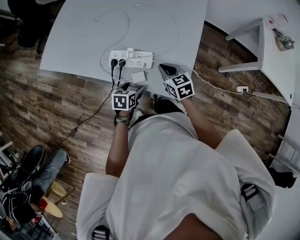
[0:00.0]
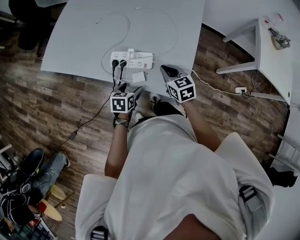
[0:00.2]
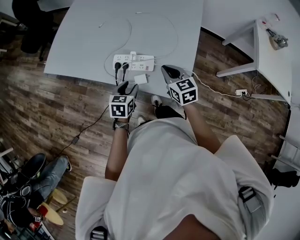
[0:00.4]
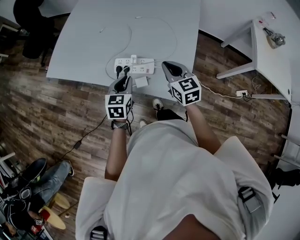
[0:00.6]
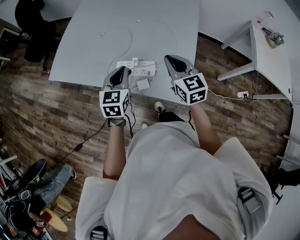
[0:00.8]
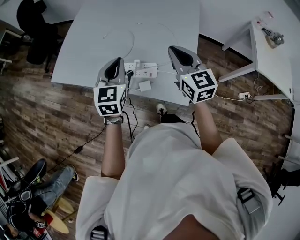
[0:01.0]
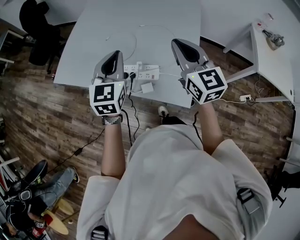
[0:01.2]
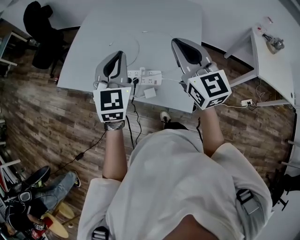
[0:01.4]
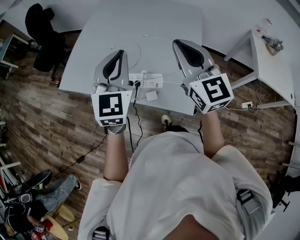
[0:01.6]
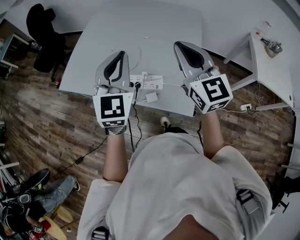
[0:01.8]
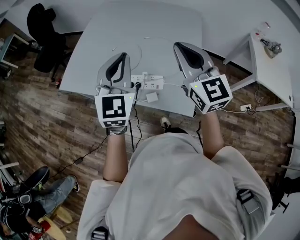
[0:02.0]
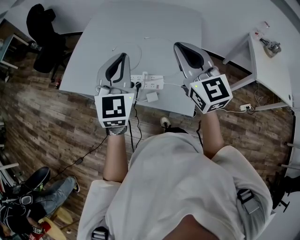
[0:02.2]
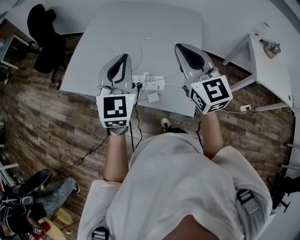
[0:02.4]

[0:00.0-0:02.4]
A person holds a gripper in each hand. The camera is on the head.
0.0 to 1.2 s: The two grippers go some 35 cm upward. The left gripper angles its fingers upward, by approximately 40 degrees, and closes. The right gripper tilts its fingers roughly 30 degrees upward.
1.2 to 2.4 s: The two grippers go about 5 cm upward.

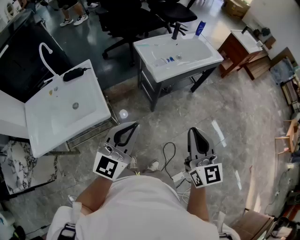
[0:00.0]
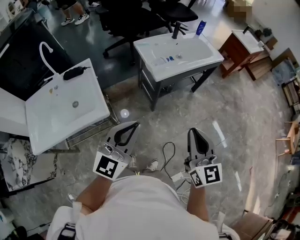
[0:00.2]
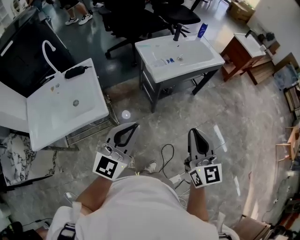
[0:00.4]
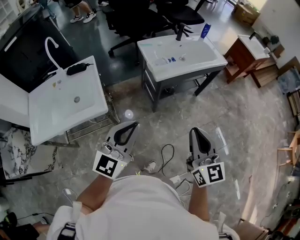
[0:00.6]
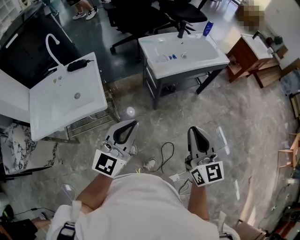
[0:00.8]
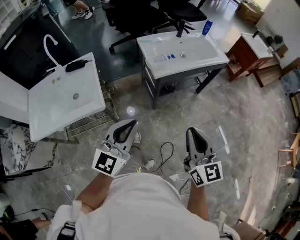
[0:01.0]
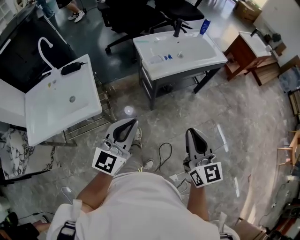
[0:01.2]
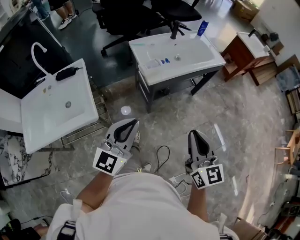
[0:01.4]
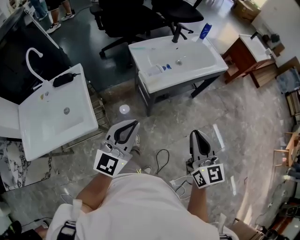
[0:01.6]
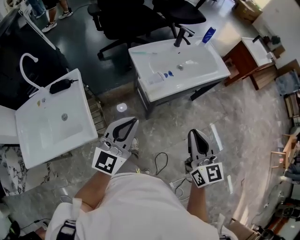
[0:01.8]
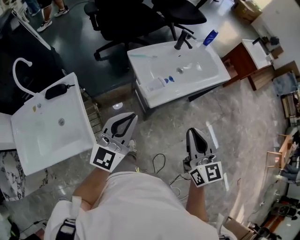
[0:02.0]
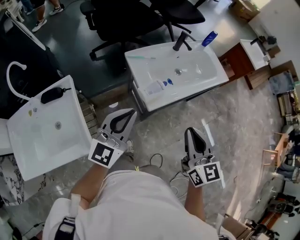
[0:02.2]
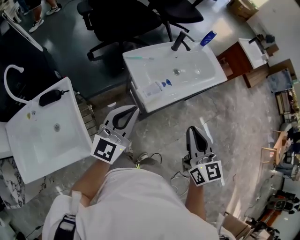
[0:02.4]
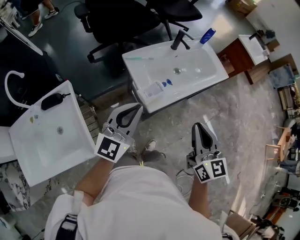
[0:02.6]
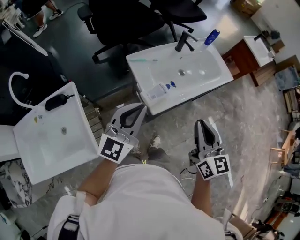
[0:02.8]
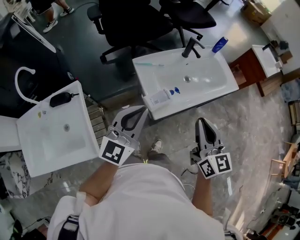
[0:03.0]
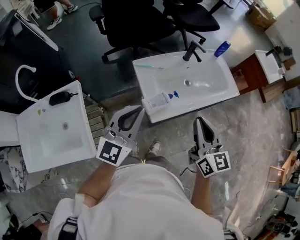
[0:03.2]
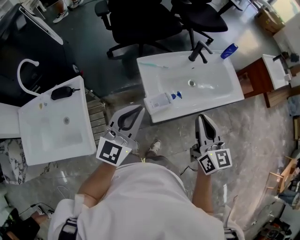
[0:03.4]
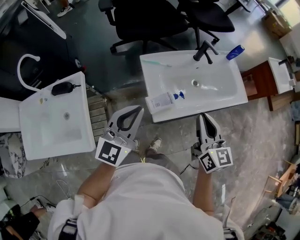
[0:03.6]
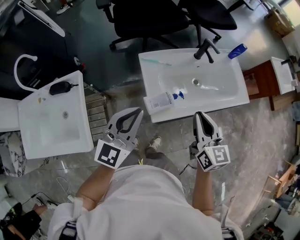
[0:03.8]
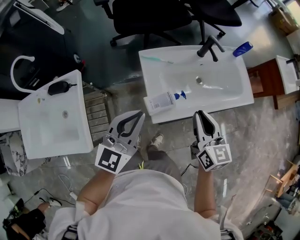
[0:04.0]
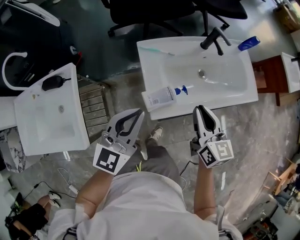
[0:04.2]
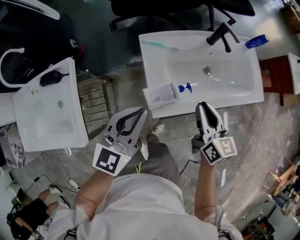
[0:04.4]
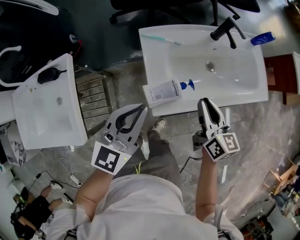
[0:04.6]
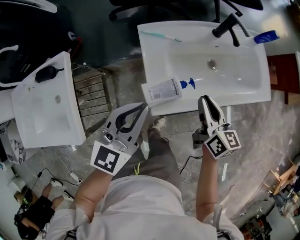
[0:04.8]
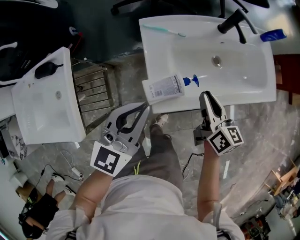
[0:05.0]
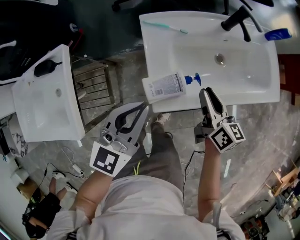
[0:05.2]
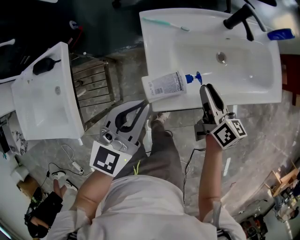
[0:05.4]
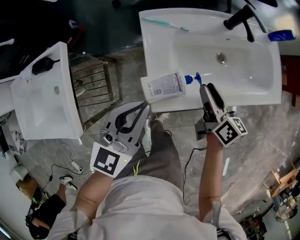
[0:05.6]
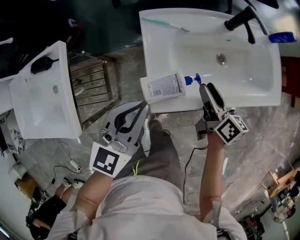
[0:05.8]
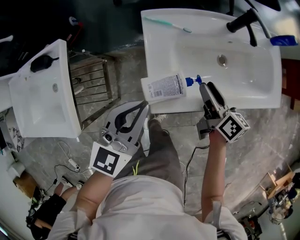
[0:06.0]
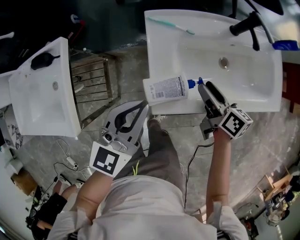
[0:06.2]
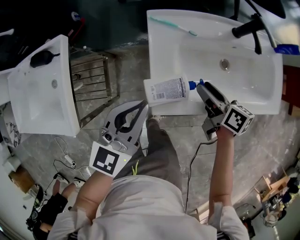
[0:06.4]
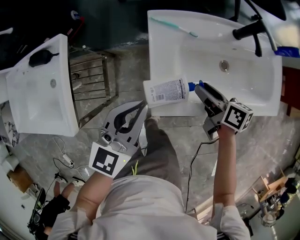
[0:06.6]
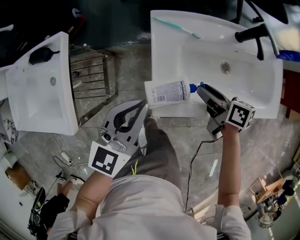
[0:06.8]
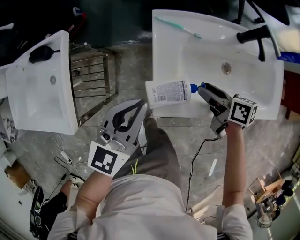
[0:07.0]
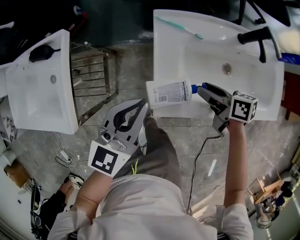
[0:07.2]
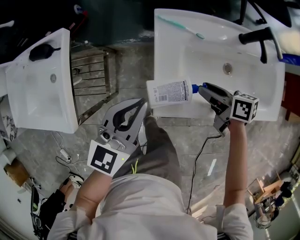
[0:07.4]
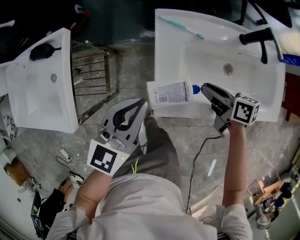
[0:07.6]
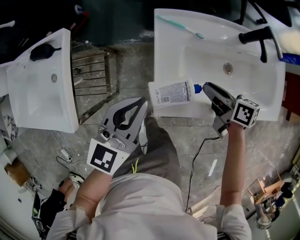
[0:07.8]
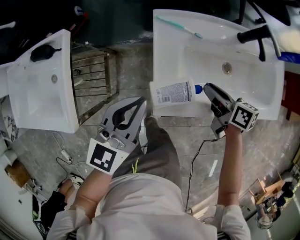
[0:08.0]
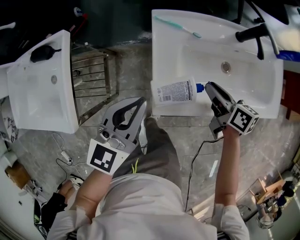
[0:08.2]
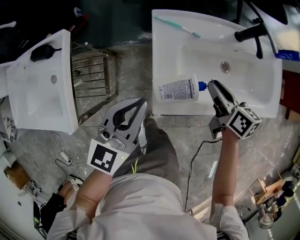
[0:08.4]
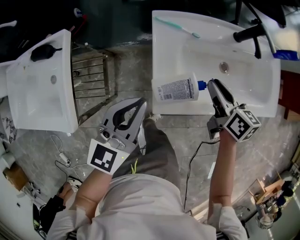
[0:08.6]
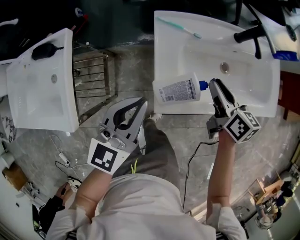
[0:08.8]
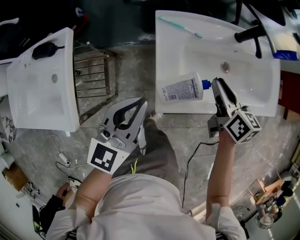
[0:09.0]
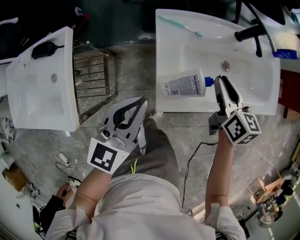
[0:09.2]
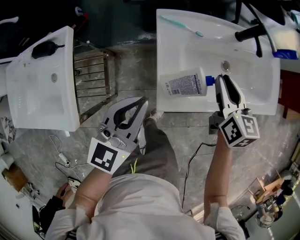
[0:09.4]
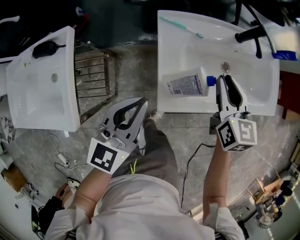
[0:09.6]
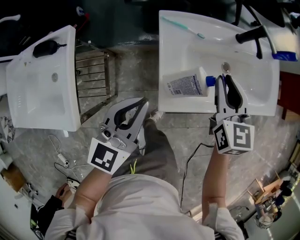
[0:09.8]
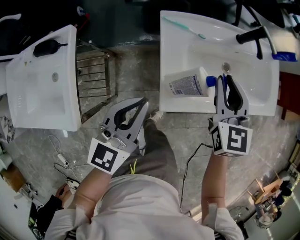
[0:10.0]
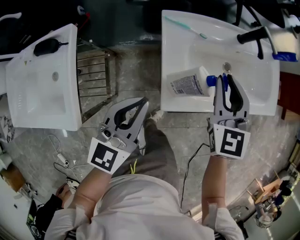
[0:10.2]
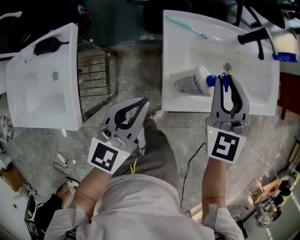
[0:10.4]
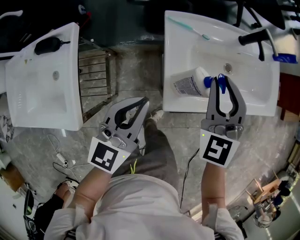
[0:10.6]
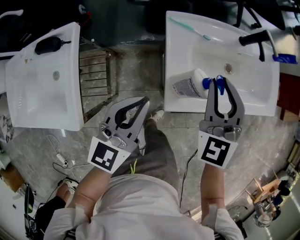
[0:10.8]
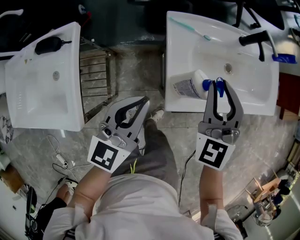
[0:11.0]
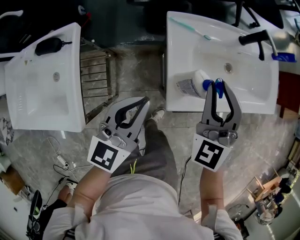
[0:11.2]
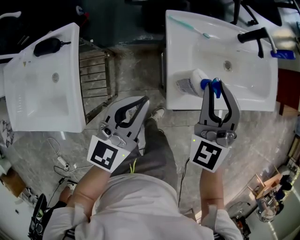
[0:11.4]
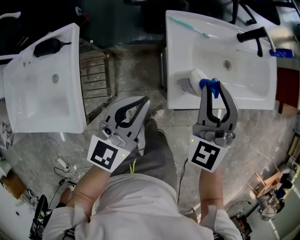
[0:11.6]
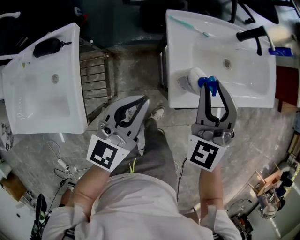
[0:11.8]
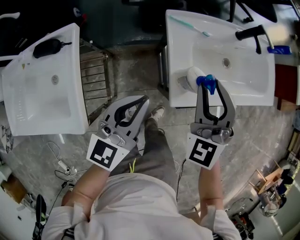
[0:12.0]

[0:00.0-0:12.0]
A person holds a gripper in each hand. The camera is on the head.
0.0 to 1.6 s: The two grippers go some 15 cm forward and to the right.
1.6 to 3.0 s: Both grippers travel together forward, about 25 cm.
3.0 to 4.4 s: The left gripper heads downward and forward, covering some 15 cm; the right gripper heads downward and forward, covering some 25 cm, and rotates some 20 degrees.
4.4 to 6.0 s: The left gripper is displaced downward by about 5 cm. Meanwhile the right gripper travels downward and forward by roughly 15 cm, turns by approximately 30 degrees, and opens.
6.0 to 7.6 s: The right gripper ends up roughly 5 cm from where it was, and rotates approximately 30 degrees.
7.6 to 9.0 s: The right gripper travels upward by approximately 10 cm, and swivels roughly 30 degrees.
9.0 to 10.4 s: The right gripper goes about 15 cm upward and to the left, and twists some 50 degrees counterclockwise, seen from behind.
10.4 to 12.0 s: The right gripper heads backward and to the left, covering approximately 10 cm.

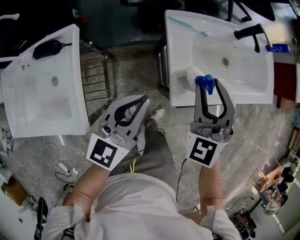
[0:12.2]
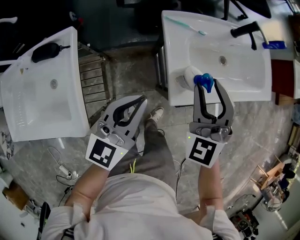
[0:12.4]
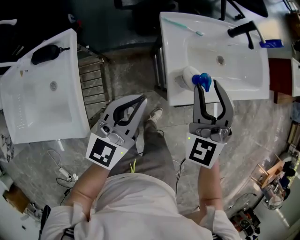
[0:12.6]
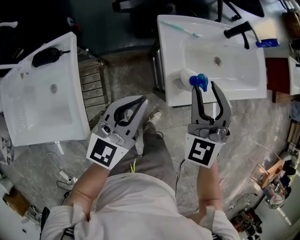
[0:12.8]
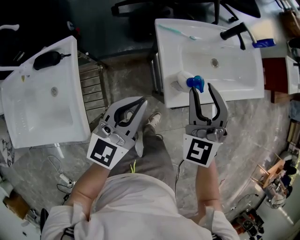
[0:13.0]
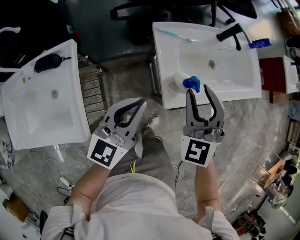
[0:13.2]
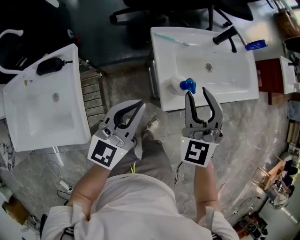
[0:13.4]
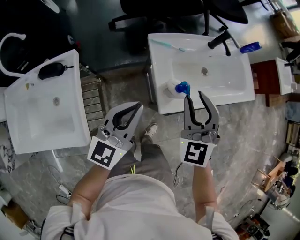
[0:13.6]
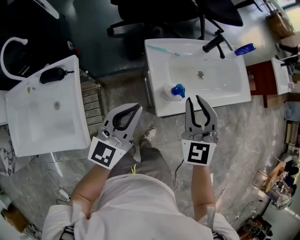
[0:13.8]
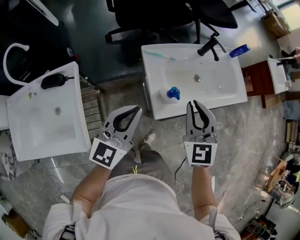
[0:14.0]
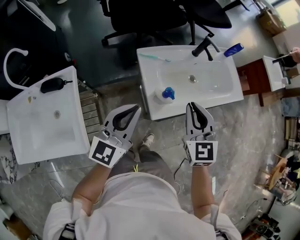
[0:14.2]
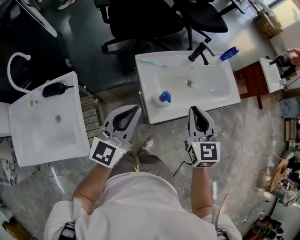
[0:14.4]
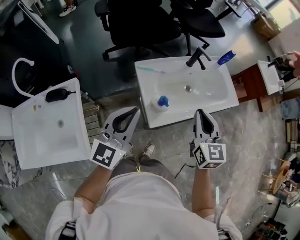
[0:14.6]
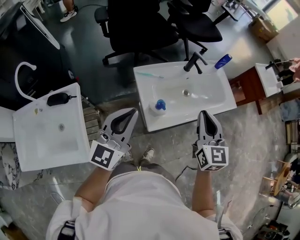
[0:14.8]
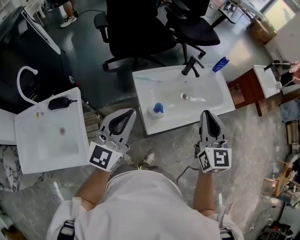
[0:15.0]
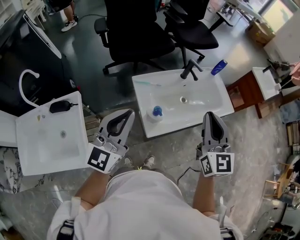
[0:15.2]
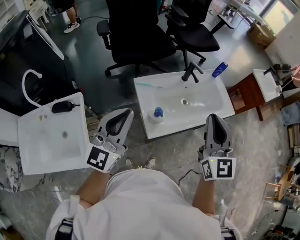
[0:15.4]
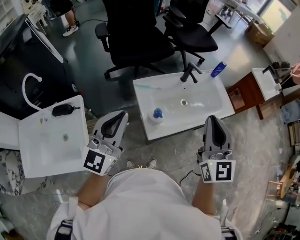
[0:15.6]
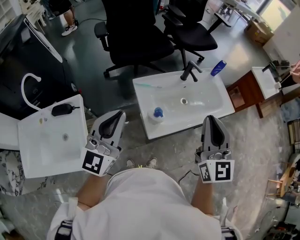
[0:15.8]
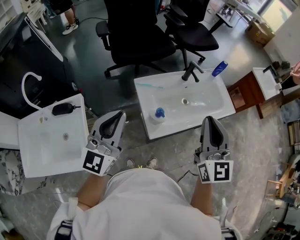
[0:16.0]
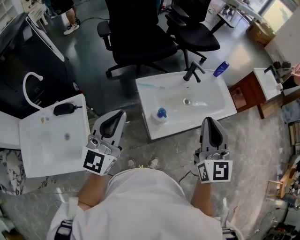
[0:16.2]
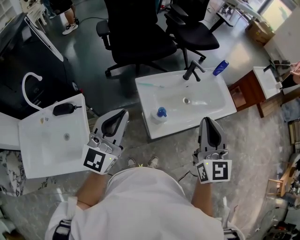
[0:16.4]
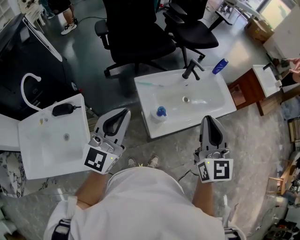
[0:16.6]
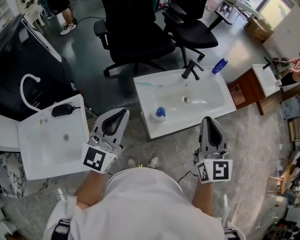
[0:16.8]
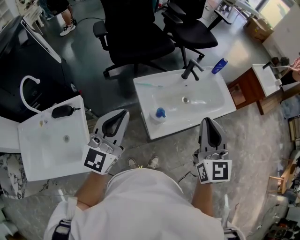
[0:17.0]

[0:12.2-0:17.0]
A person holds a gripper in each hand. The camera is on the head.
12.2 to 13.8 s: Both grippers move upward, approximately 10 cm.
13.8 to 15.4 s: The left gripper heads upward, covering approximately 15 cm, while the right gripper shifts some 20 cm upward and to the right, and turns by some 30 degrees.
15.4 to 17.0 s: There are only small adjustments of the grippers.

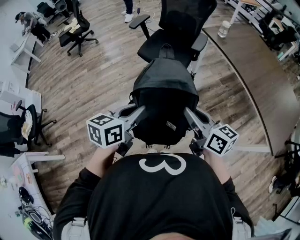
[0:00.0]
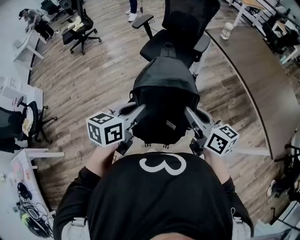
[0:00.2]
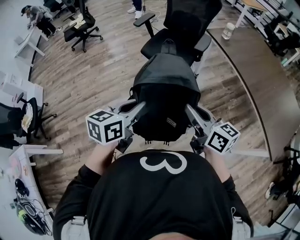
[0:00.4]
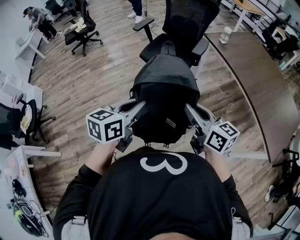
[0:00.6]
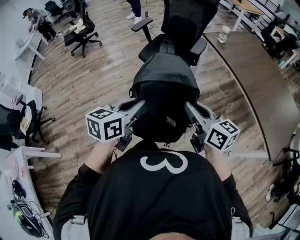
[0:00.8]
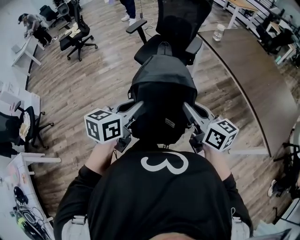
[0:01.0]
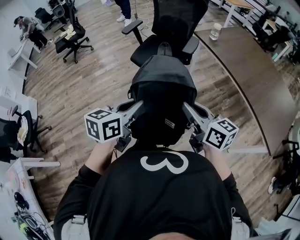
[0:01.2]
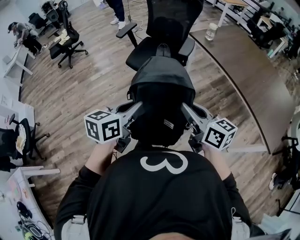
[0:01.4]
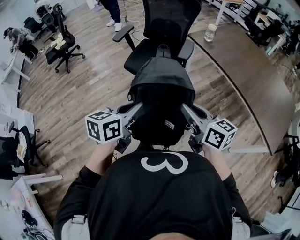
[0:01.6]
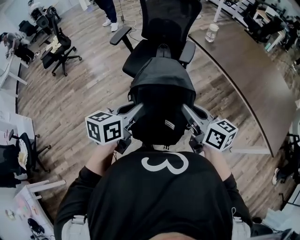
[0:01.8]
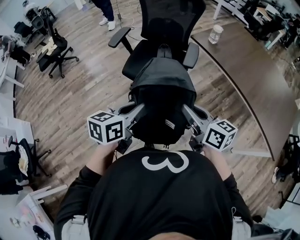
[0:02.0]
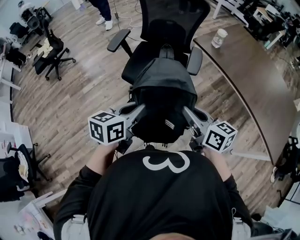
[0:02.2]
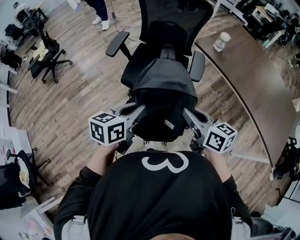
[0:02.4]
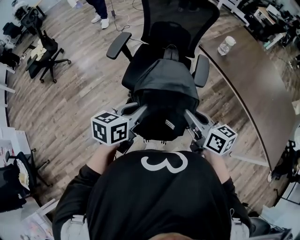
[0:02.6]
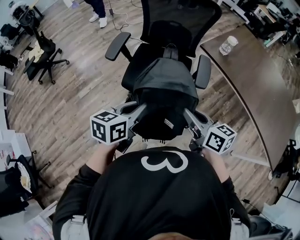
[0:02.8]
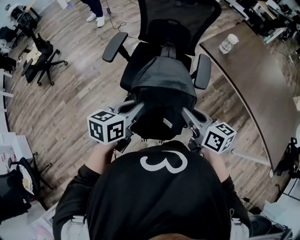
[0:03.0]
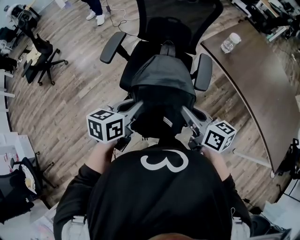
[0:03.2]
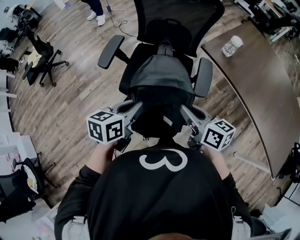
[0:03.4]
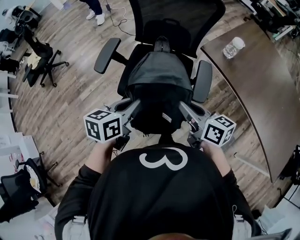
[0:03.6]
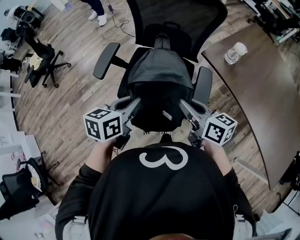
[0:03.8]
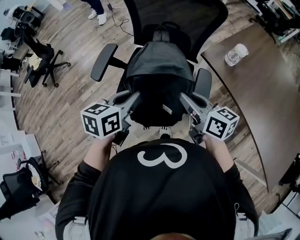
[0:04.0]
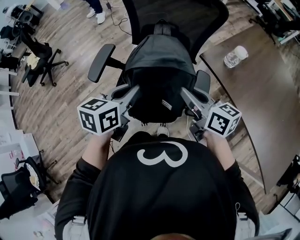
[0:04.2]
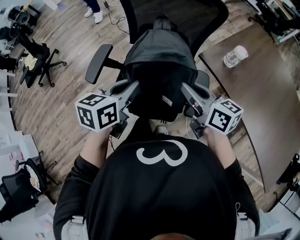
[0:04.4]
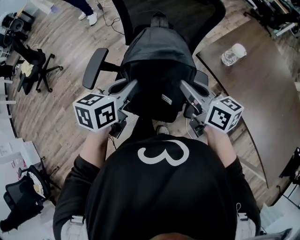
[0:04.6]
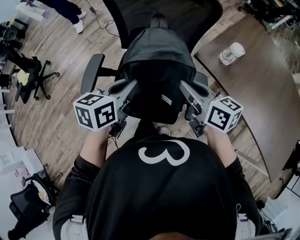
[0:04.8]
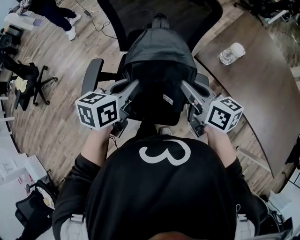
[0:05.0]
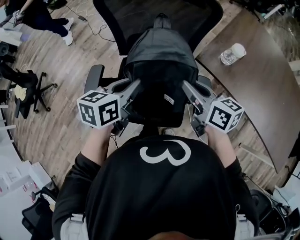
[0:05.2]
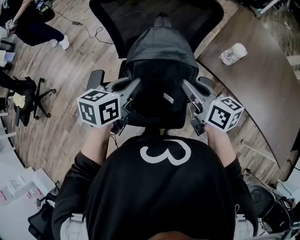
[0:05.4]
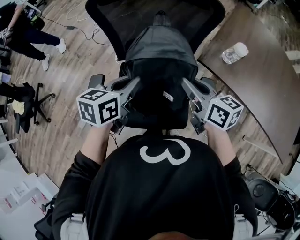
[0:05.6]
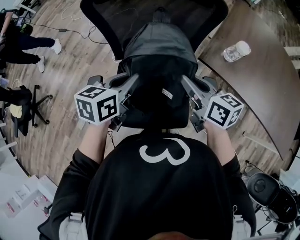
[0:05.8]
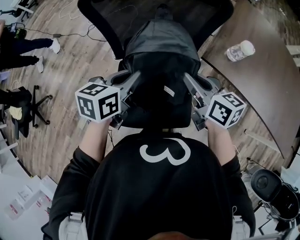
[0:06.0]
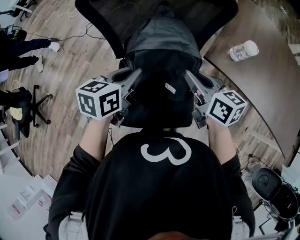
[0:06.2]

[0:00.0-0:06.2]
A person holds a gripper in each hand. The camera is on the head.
0.0 to 1.6 s: The grippers both shift forward by roughly 10 cm.
1.6 to 3.2 s: The grippers both shift forward by some 35 cm.
3.2 to 4.6 s: The two grippers go approximately 25 cm forward.
4.6 to 6.2 s: Both grippers travel together forward, approximately 15 cm. The right gripper swivels some 20 degrees, while the left gripper turns by about 20 degrees.
